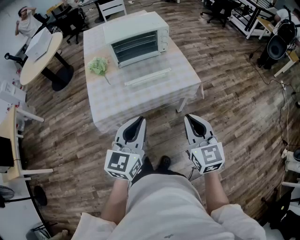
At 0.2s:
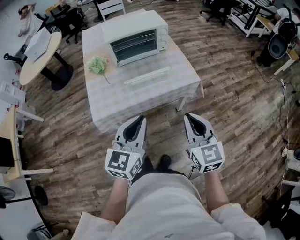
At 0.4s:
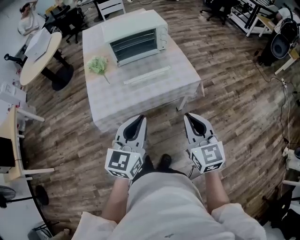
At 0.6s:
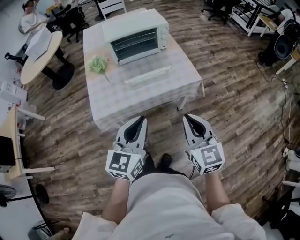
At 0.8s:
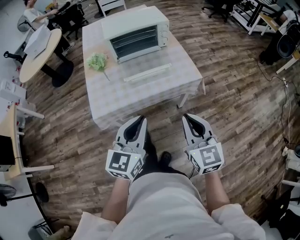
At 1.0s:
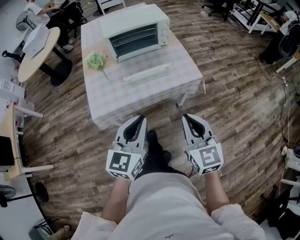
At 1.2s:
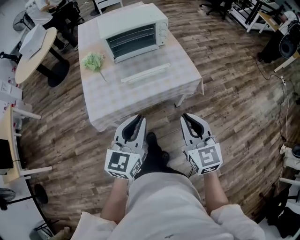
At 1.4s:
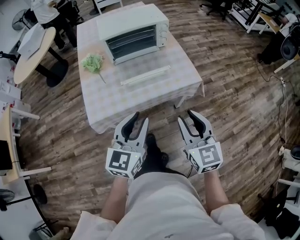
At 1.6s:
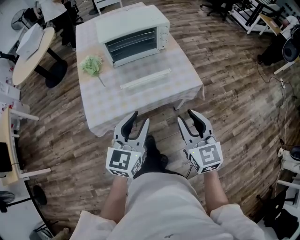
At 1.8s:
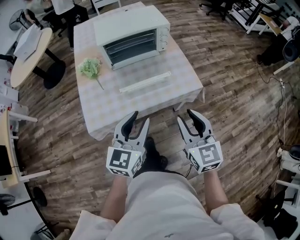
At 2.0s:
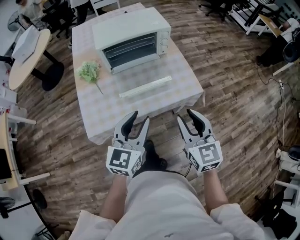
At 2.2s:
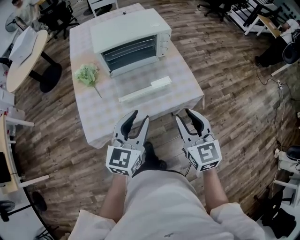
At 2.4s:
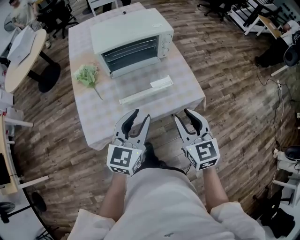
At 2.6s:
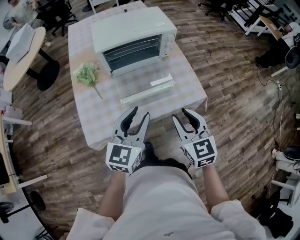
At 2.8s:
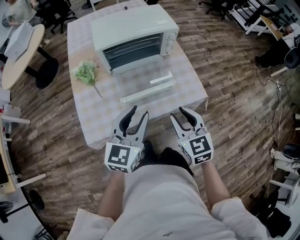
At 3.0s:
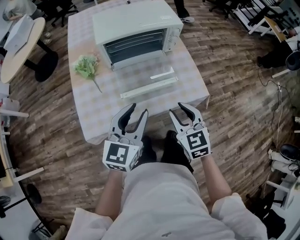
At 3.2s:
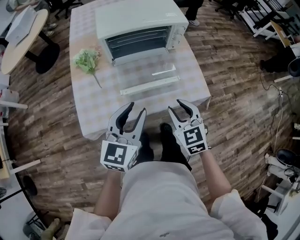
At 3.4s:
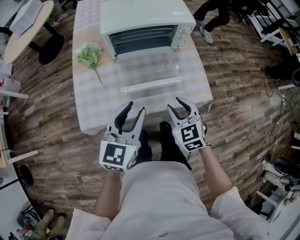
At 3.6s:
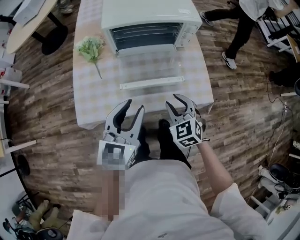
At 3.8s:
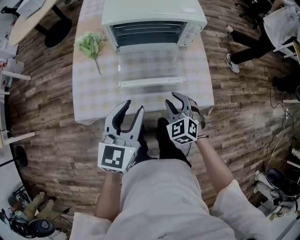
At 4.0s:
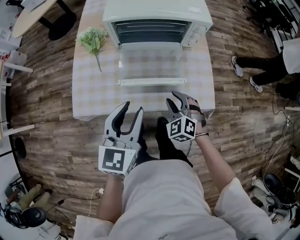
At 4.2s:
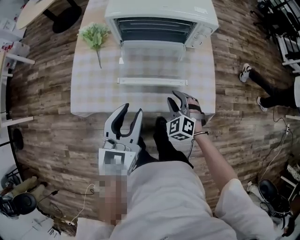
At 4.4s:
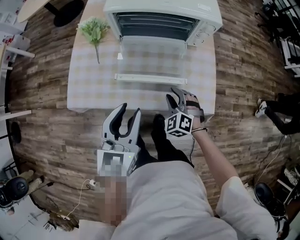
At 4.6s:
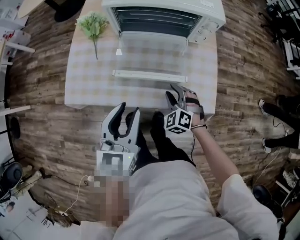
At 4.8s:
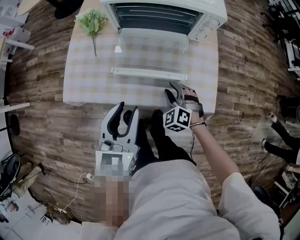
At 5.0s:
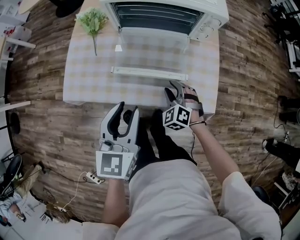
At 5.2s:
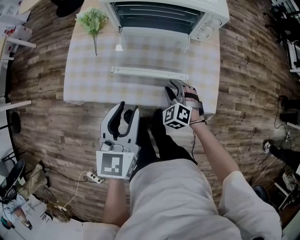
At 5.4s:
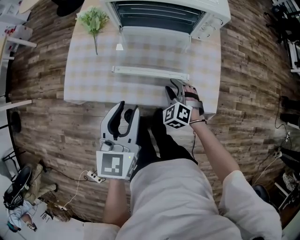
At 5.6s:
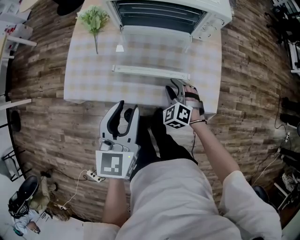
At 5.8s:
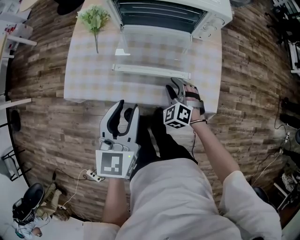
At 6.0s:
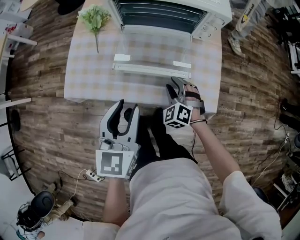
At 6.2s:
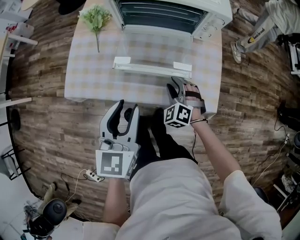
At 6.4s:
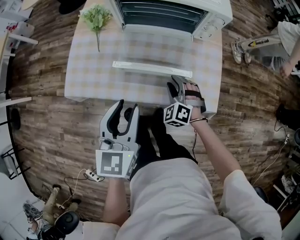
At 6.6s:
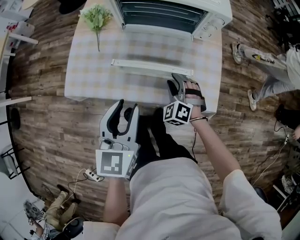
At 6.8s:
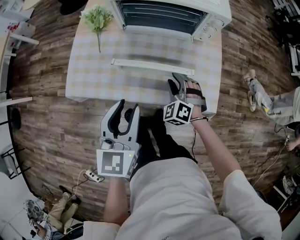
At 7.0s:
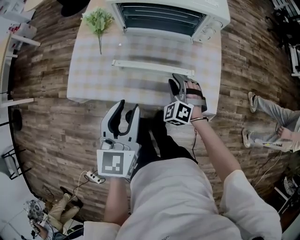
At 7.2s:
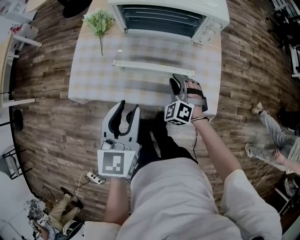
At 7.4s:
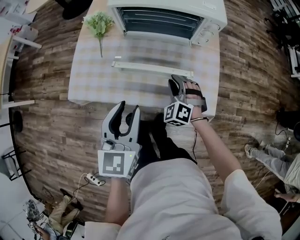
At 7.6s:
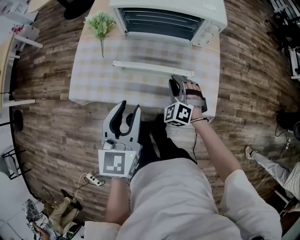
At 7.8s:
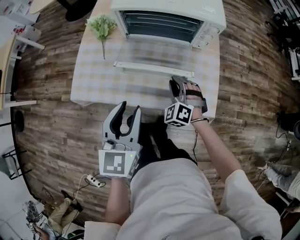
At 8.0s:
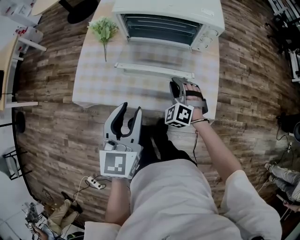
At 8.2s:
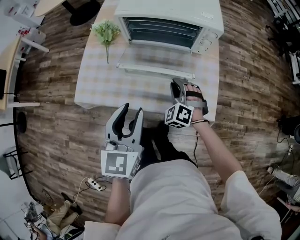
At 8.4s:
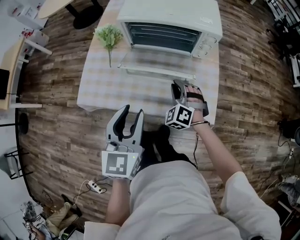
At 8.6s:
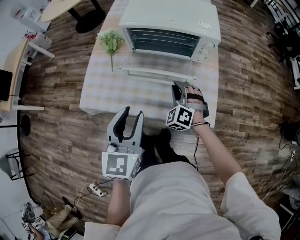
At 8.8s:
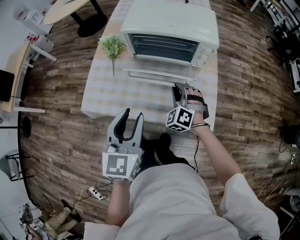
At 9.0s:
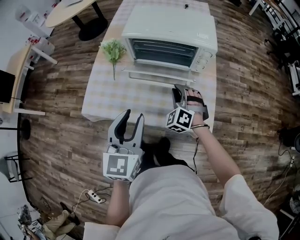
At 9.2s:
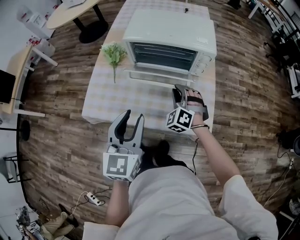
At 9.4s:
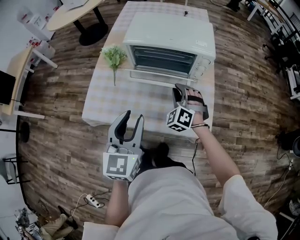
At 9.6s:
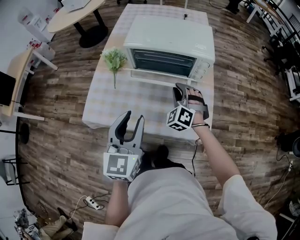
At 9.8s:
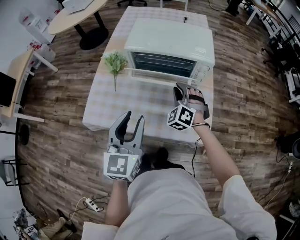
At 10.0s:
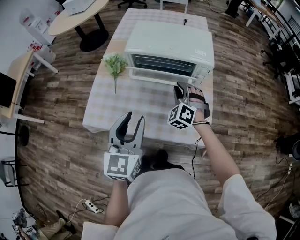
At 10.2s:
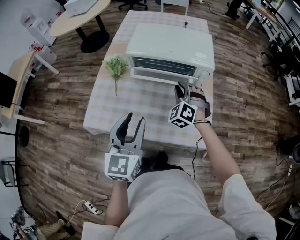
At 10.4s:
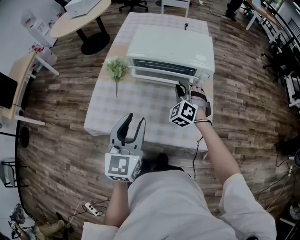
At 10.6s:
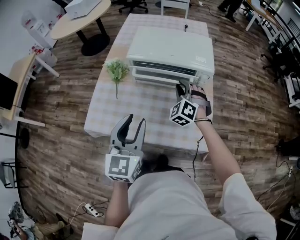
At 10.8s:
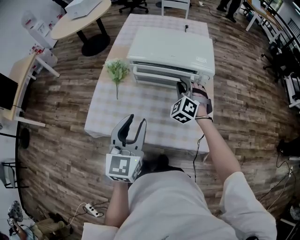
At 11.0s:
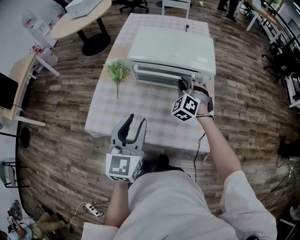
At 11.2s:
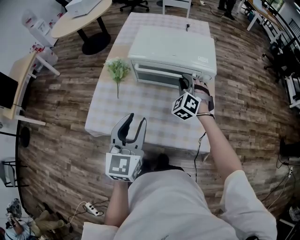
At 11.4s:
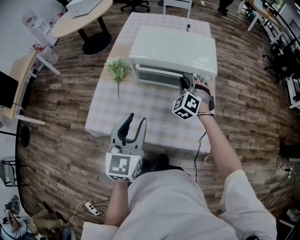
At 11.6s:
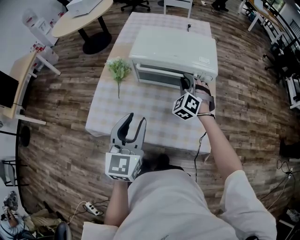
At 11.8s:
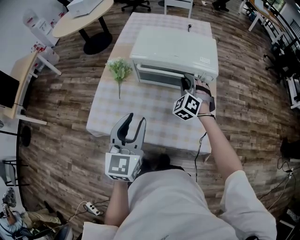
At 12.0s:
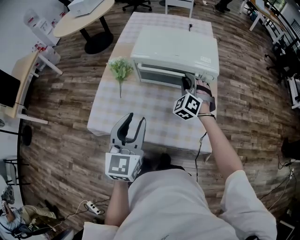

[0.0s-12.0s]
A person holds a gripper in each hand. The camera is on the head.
0.0s to 1.6s: Both grippers move forward, roughly 10 cm. The left gripper opens, while the right gripper opens up.
1.6s to 3.0s: The left gripper heads forward, covering roughly 15 cm. Meanwhile the right gripper heads forward, downward and to the left, covering roughly 20 cm.
3.0s to 4.4s: The right gripper shifts roughly 20 cm downward and forward, and twists approximately 50 degrees counterclockwise, seen from behind, while the left gripper goes roughly 5 cm downward, and swivels about 30 degrees.
4.4s to 6.0s: The grippers move only a little.
6.0s to 7.6s: The right gripper moves approximately 5 cm.
7.6s to 9.0s: Both grippers move upward, approximately 5 cm.
9.0s to 10.4s: The right gripper shifts about 10 cm forward and upward.
10.4s to 12.0s: The grippers stay close to where they were, moving slightly.

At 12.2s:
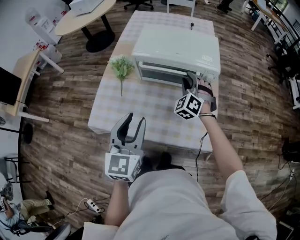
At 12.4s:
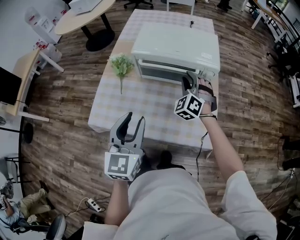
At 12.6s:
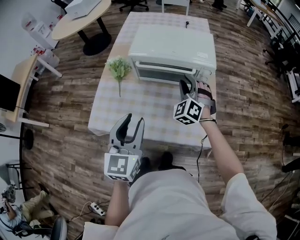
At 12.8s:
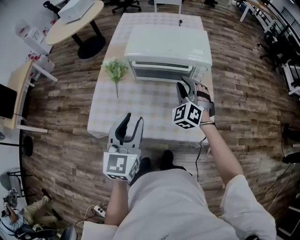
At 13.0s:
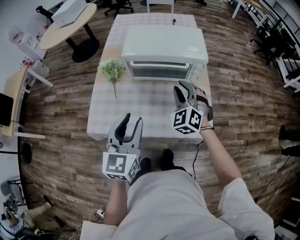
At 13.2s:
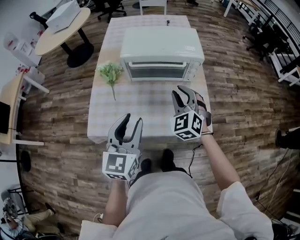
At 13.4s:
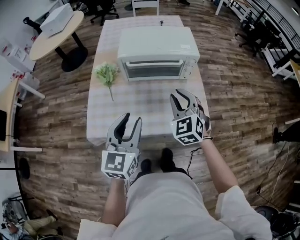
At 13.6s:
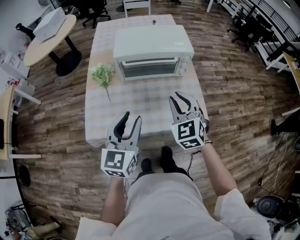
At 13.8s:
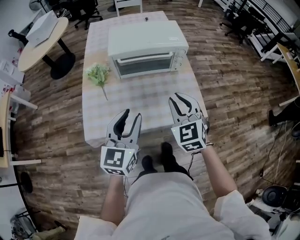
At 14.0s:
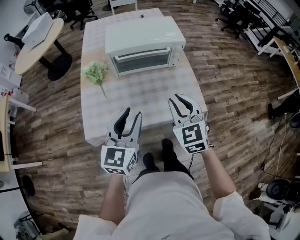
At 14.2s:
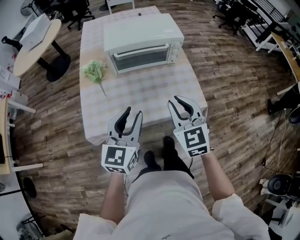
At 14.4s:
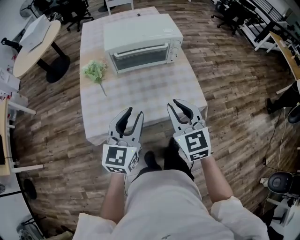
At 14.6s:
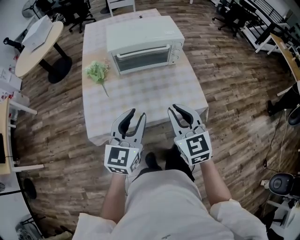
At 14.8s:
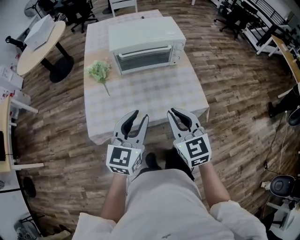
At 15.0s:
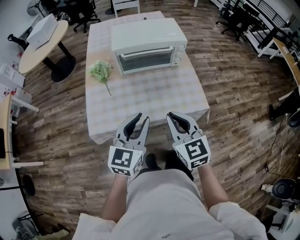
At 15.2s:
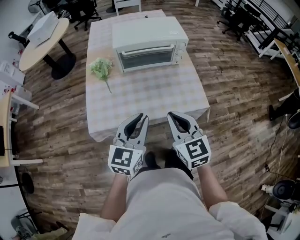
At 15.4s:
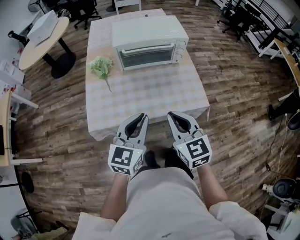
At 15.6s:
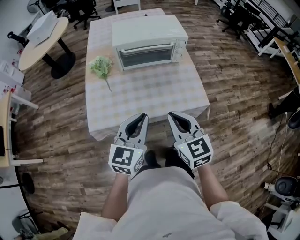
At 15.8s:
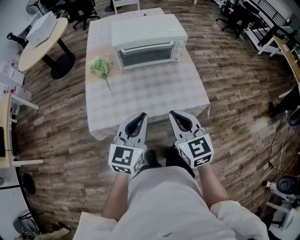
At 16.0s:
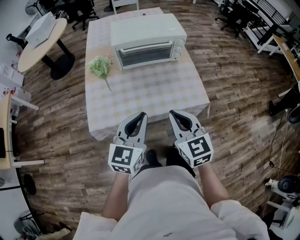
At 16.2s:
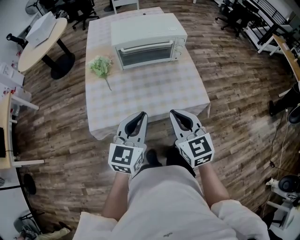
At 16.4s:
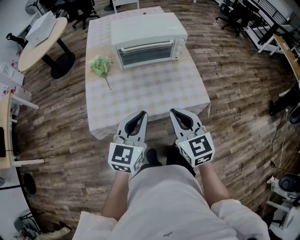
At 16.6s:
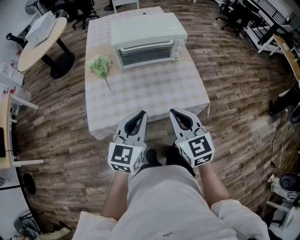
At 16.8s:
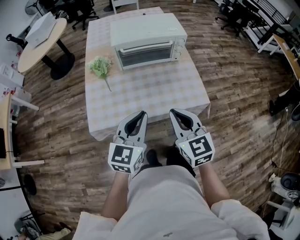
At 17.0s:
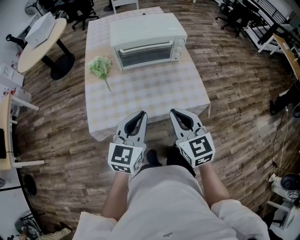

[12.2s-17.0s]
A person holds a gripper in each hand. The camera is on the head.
12.2s to 13.8s: The right gripper moves backward, some 25 cm, and changes its angle by about 40 degrees, while the left gripper travels backward by approximately 5 cm, and swivels some 20 degrees.
13.8s to 15.4s: The right gripper moves backward, about 15 cm, and changes its angle by roughly 20 degrees. The left gripper shifts some 5 cm backward, and closes its fingers.
15.4s to 17.0s: The two grippers keep their place.

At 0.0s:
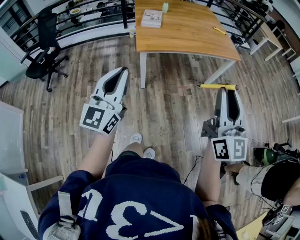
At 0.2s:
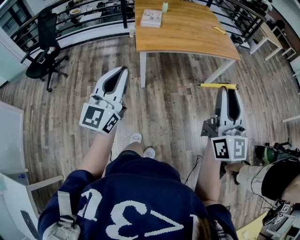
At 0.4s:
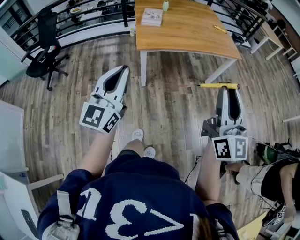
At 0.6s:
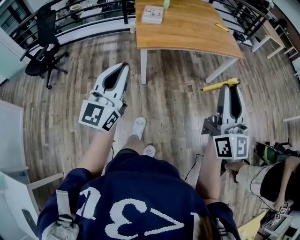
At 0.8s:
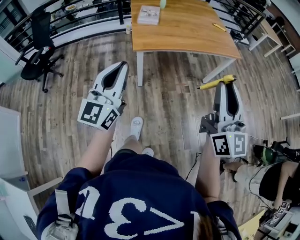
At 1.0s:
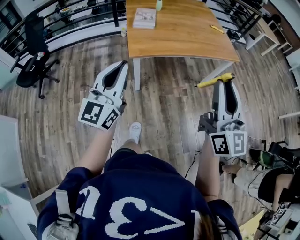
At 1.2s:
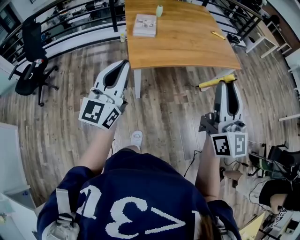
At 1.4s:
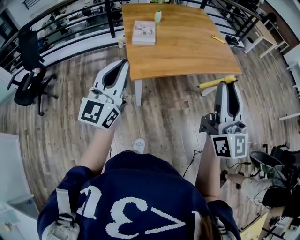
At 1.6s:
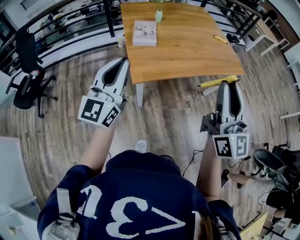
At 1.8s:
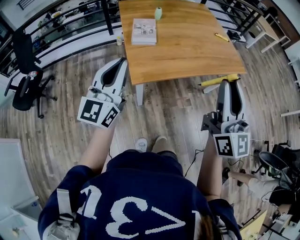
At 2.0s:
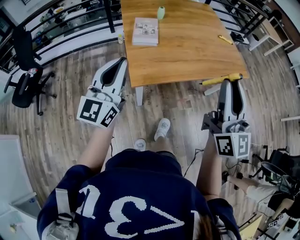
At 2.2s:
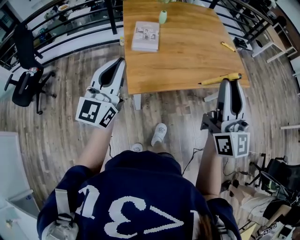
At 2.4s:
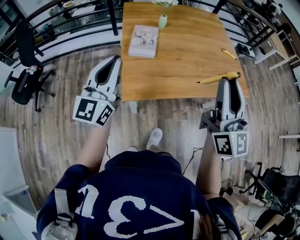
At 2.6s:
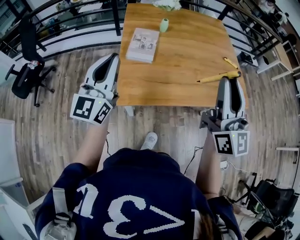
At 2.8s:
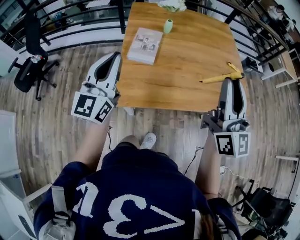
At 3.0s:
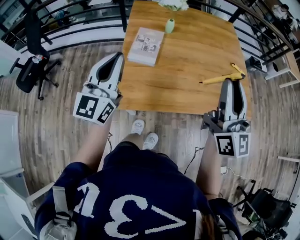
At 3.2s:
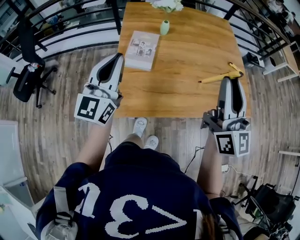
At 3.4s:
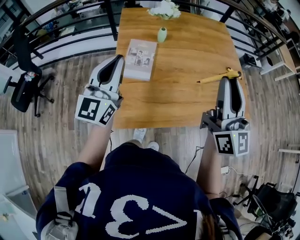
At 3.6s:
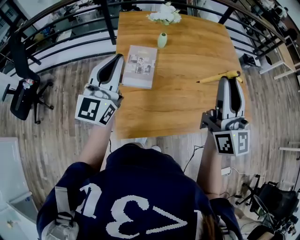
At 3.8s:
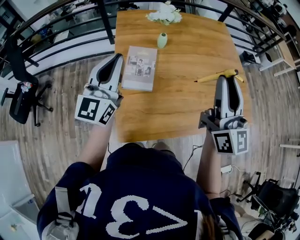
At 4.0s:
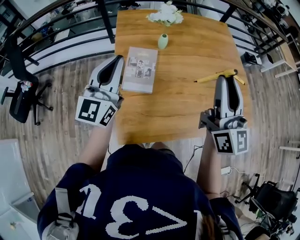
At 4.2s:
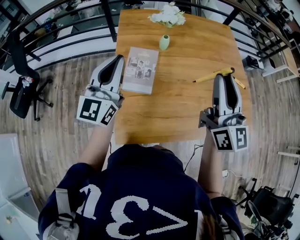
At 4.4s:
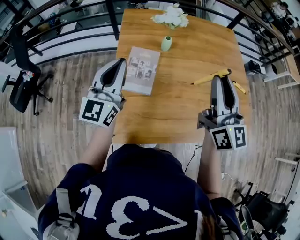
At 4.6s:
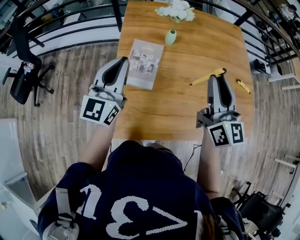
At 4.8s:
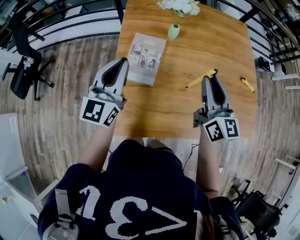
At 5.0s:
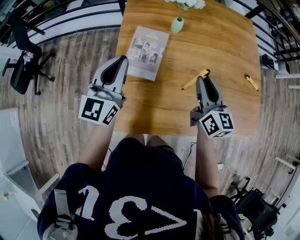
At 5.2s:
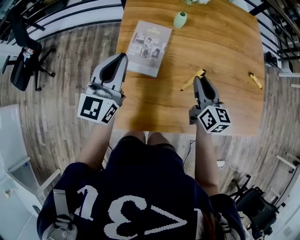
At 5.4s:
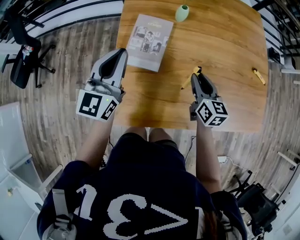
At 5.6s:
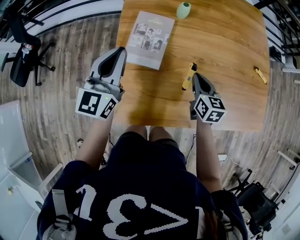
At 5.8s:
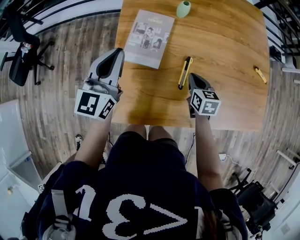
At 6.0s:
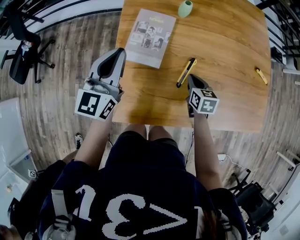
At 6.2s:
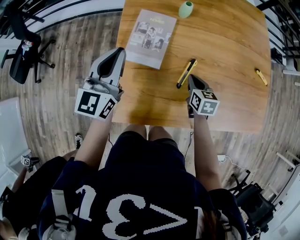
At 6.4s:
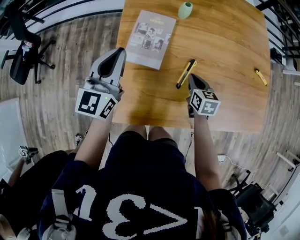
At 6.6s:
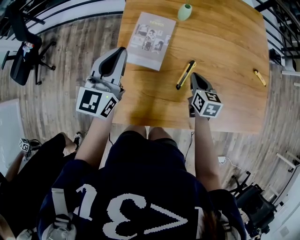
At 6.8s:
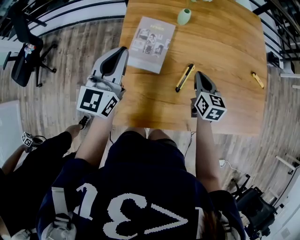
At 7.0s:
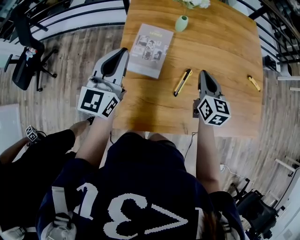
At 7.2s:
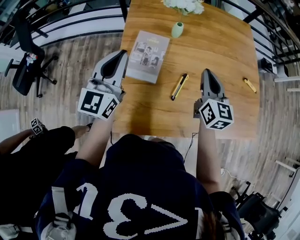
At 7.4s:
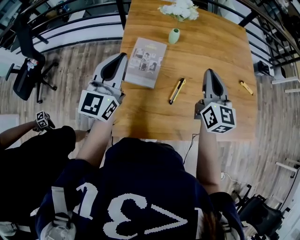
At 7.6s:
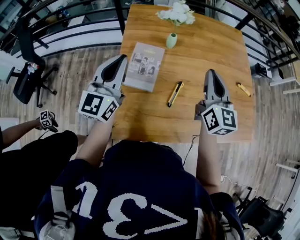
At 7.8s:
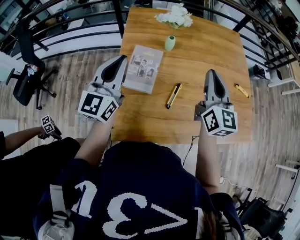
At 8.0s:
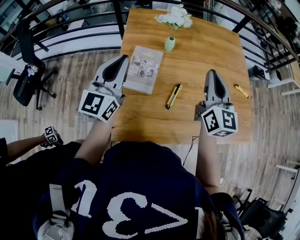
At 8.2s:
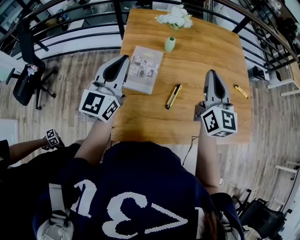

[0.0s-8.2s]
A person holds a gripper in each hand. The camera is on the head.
0.0s to 1.6s: Both grippers move forward, approximately 25 cm.
1.6s to 3.2s: The two grippers go roughly 30 cm forward.
3.2s to 5.0s: The right gripper travels downward and forward by some 30 cm, and rotates roughly 30 degrees, while the left gripper moves forward and downward, about 15 cm.
5.0s to 6.6s: The right gripper heads downward, covering approximately 15 cm, changes its angle by some 30 degrees, and closes its fingers.
6.6s to 8.2s: The left gripper shifts roughly 10 cm upward. Meanwhile the right gripper heads upward, covering roughly 30 cm, and angles its fingers upward, by some 40 degrees.
